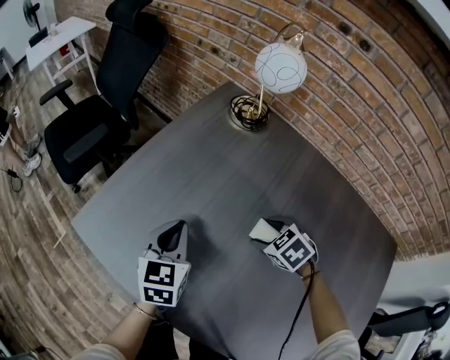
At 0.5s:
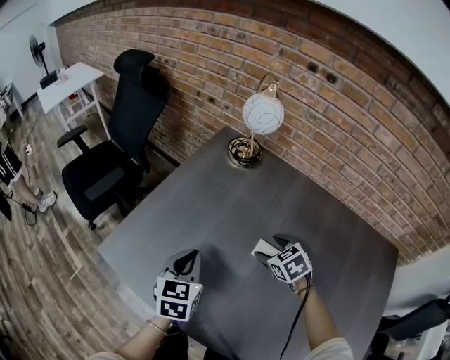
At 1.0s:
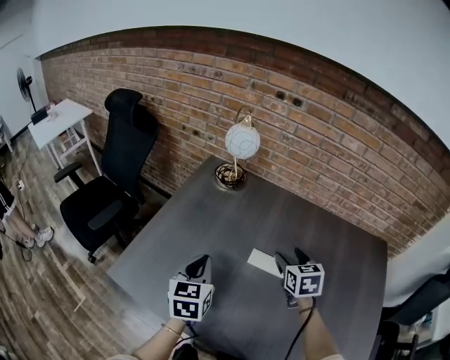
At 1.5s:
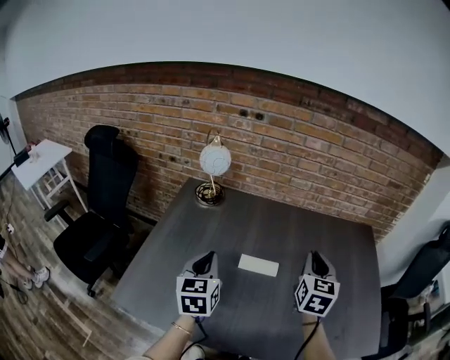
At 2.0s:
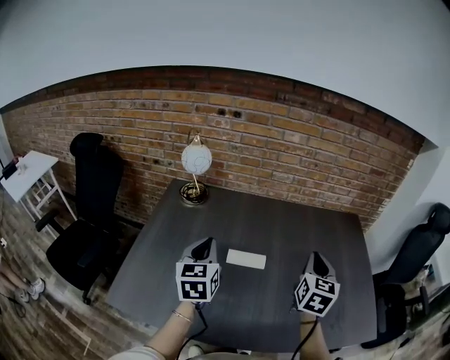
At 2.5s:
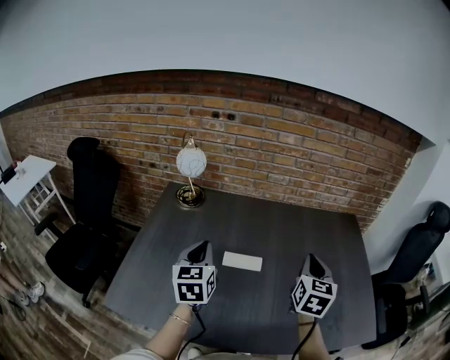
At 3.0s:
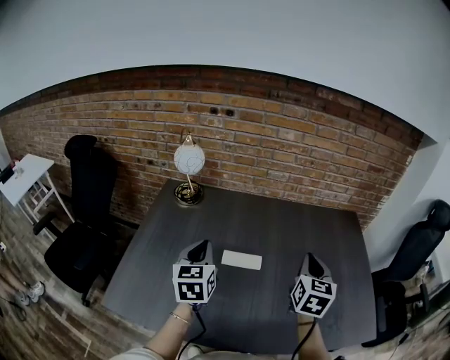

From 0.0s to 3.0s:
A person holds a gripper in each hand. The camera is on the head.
From 0.0s to 1.5s: The left gripper moves upward, some 15 cm, and changes its angle by about 20 degrees. Meanwhile the right gripper is displaced upward by some 30 cm, points its fingers approximately 50 degrees further upward, and closes its fingers.
From 1.5s to 3.0s: The right gripper moves to the right, about 5 cm. Meanwhile the left gripper moves about 5 cm.

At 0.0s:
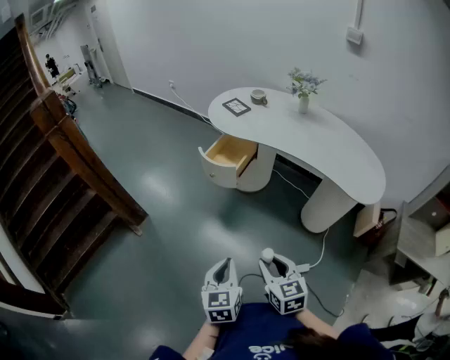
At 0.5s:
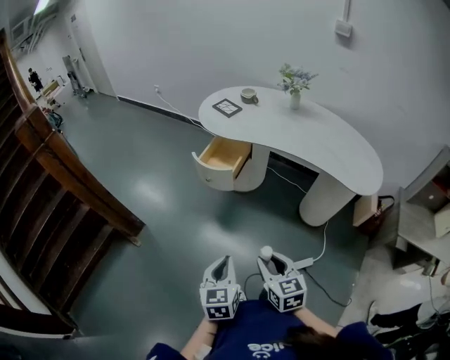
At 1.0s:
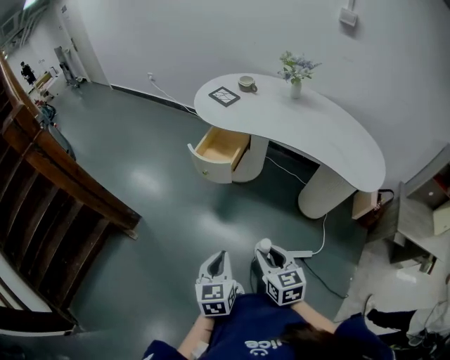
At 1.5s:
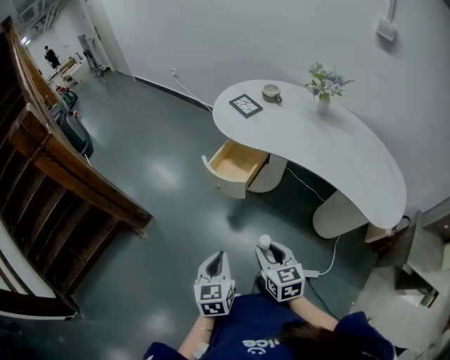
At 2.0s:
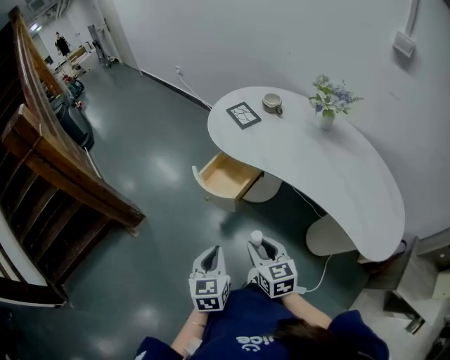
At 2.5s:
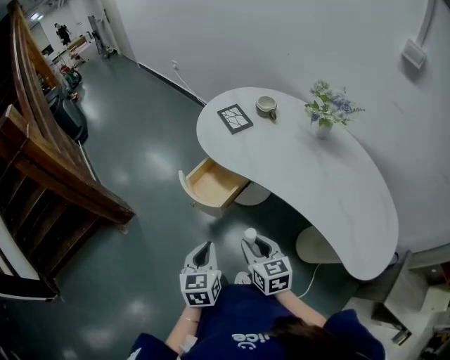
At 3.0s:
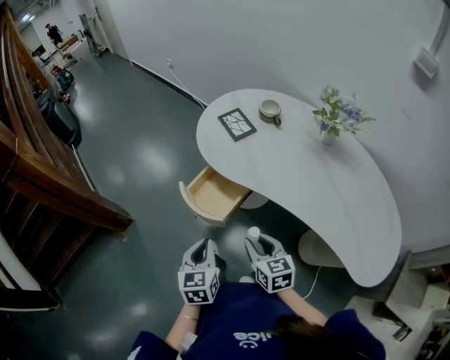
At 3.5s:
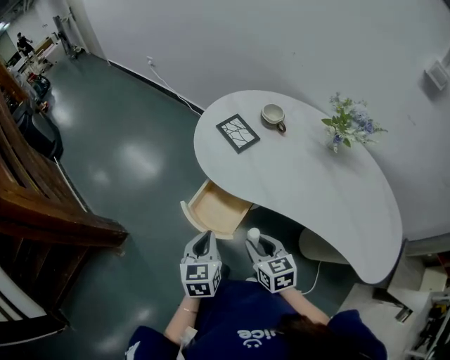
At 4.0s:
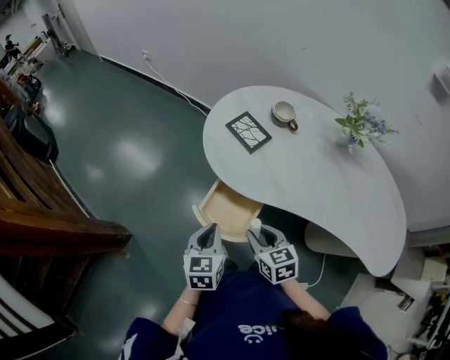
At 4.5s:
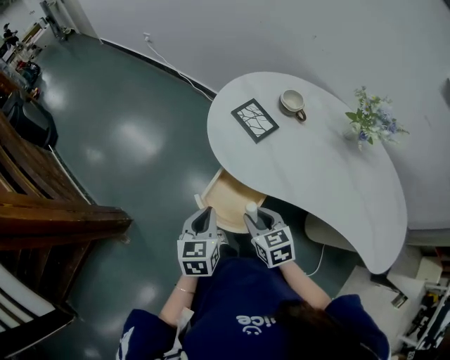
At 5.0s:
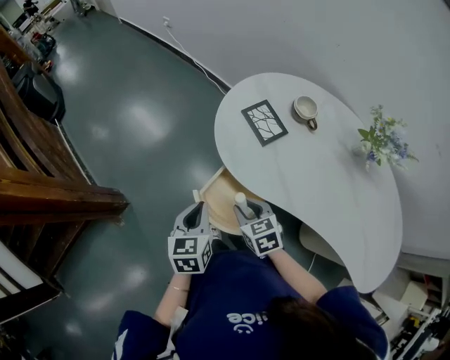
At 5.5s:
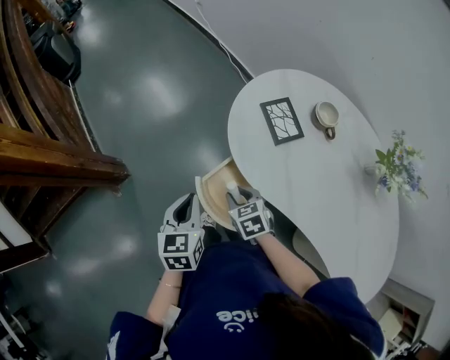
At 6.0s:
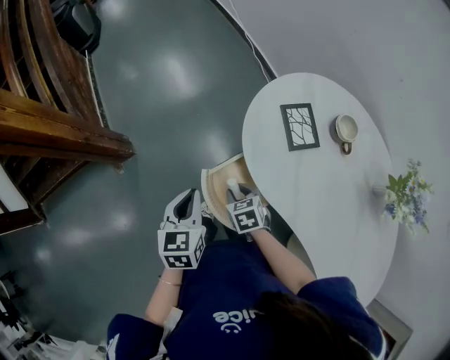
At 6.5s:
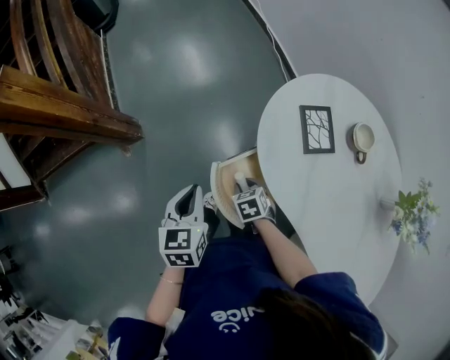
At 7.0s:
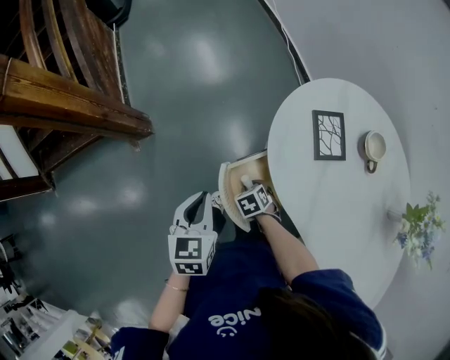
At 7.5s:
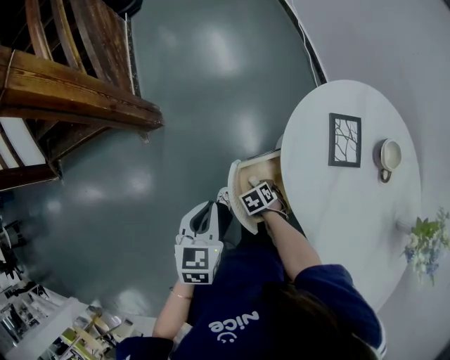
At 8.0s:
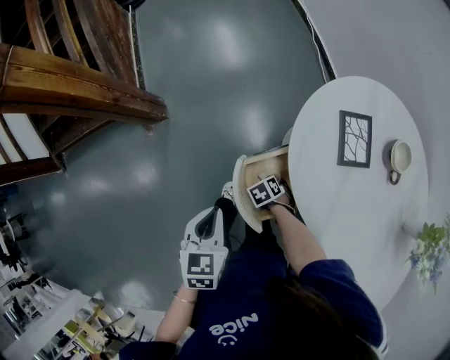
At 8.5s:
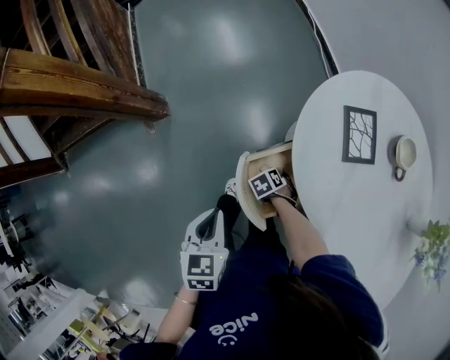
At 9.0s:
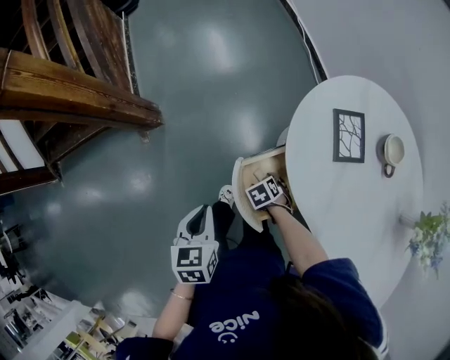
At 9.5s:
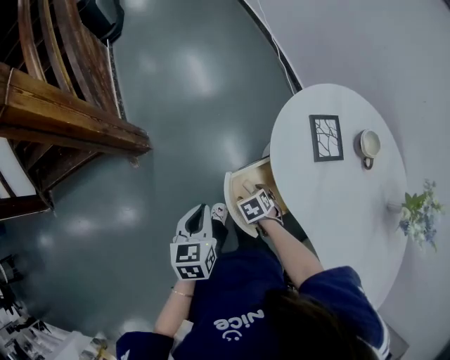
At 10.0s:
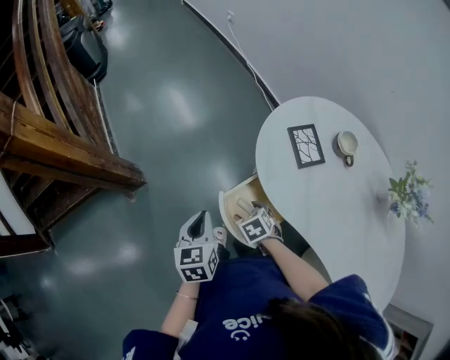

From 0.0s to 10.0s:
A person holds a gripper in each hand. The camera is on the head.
From 0.0s to 2.0s: Both grippers travel together forward, about 30 cm.
From 2.0s to 4.0s: Both grippers travel together forward, approximately 30 cm.
From 4.0s to 6.0s: The left gripper ends up some 10 cm from where it was, and swivels roughly 30 degrees; the right gripper travels downward by roughly 10 cm, and rotates roughly 40 degrees.
From 6.0s to 8.0s: The right gripper heads downward, covering some 15 cm, and changes its angle by some 30 degrees. Meanwhile the left gripper shifts by roughly 5 cm.
From 8.0s to 10.0s: The left gripper changes place by approximately 5 cm. The right gripper shifts roughly 15 cm upward, swivels about 20 degrees, and opens its fingers.

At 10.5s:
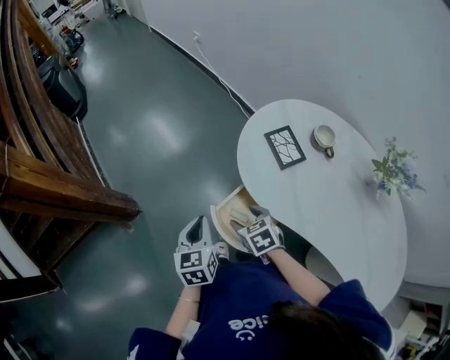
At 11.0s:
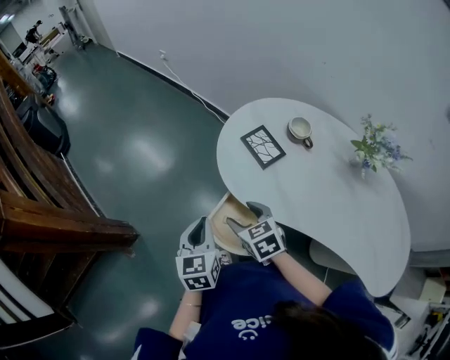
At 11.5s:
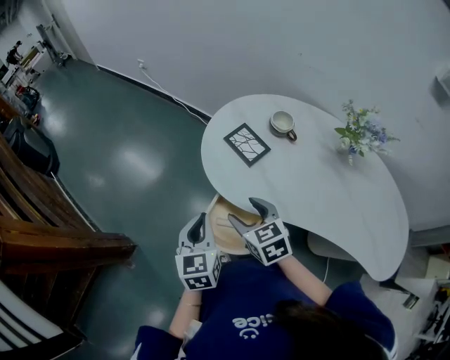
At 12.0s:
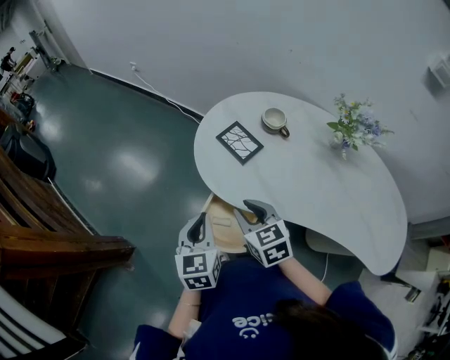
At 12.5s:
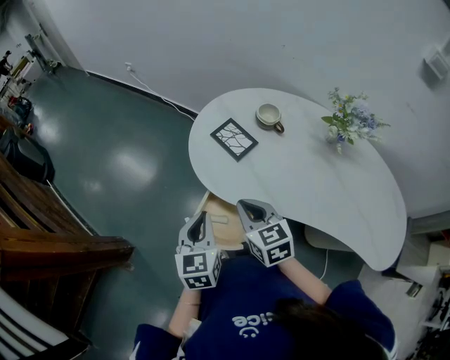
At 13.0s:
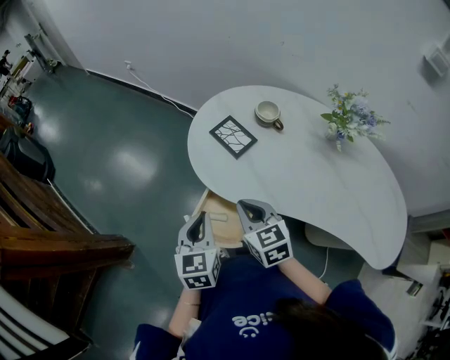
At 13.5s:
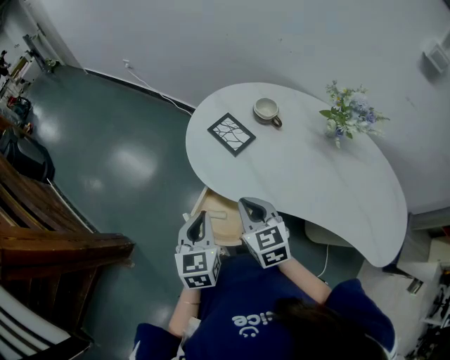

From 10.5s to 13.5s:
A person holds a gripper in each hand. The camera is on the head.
From 10.5s to 12.0s: The right gripper goes about 15 cm upward and to the right, changes its angle by some 30 degrees, and closes up, while the left gripper moves to the right and upward, about 10 cm, and turns by approximately 20 degrees.
From 12.0s to 13.5s: The right gripper closes its fingers.

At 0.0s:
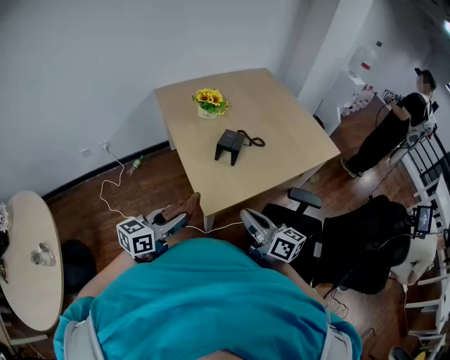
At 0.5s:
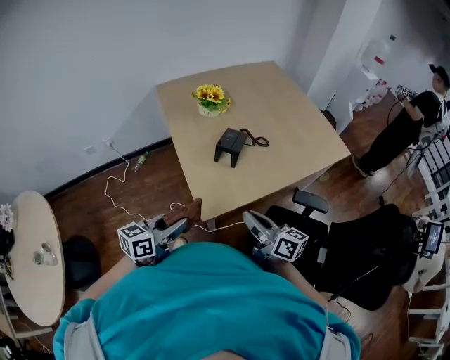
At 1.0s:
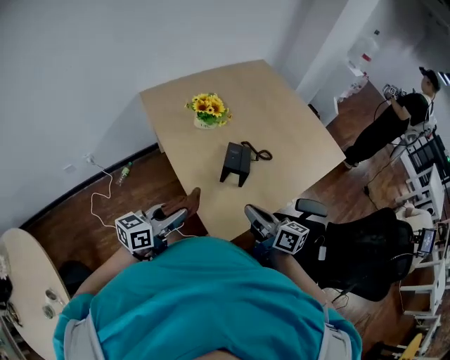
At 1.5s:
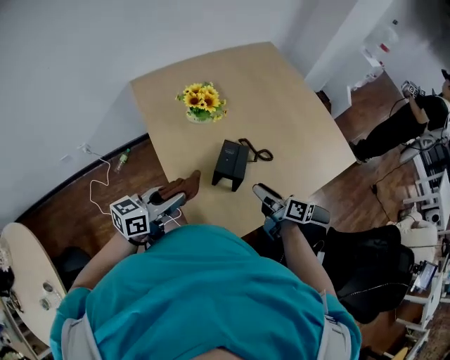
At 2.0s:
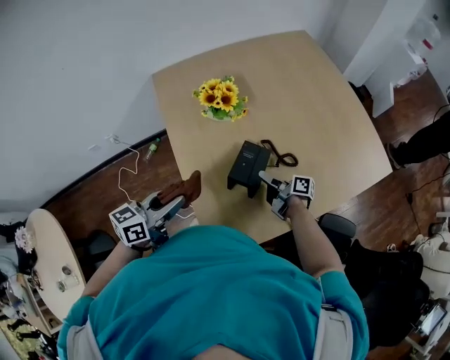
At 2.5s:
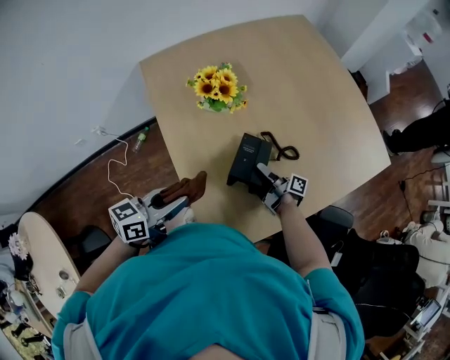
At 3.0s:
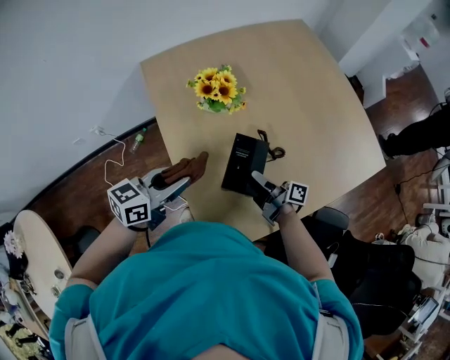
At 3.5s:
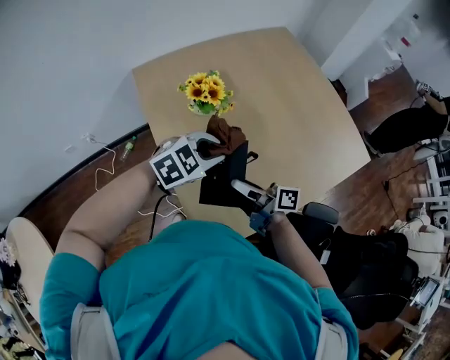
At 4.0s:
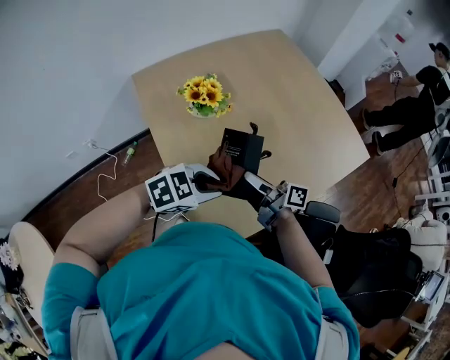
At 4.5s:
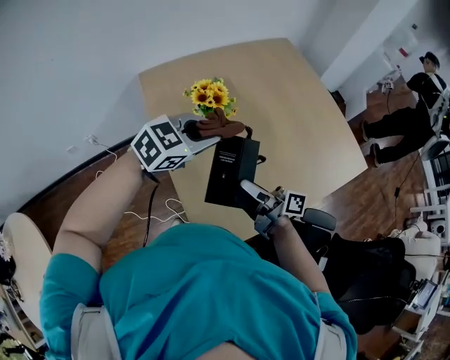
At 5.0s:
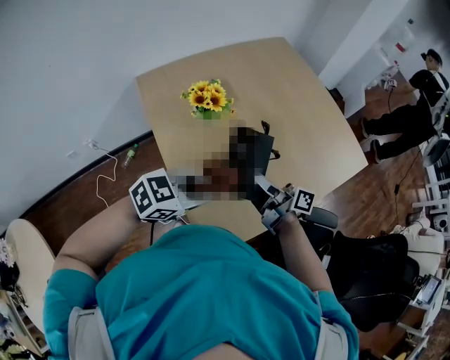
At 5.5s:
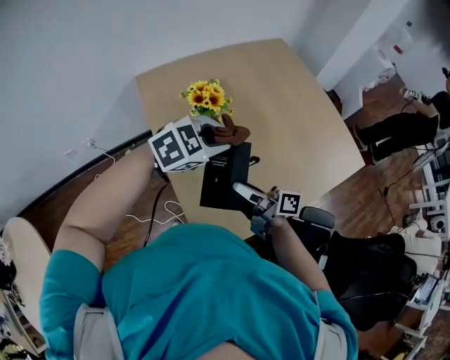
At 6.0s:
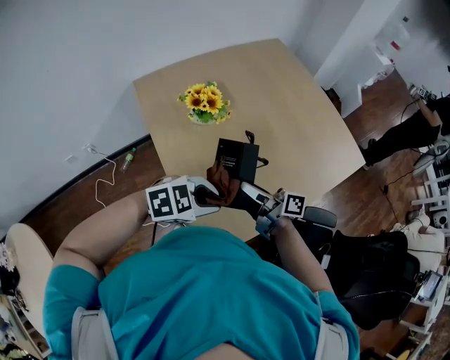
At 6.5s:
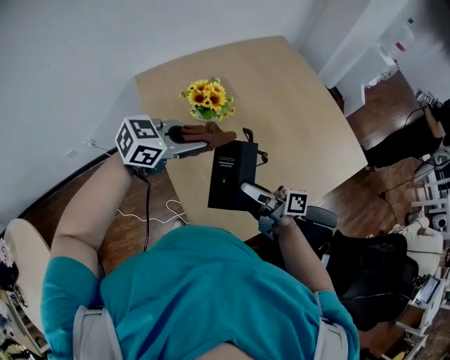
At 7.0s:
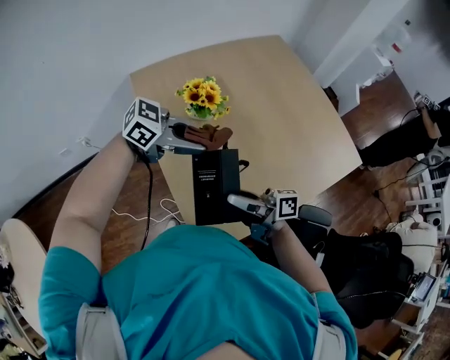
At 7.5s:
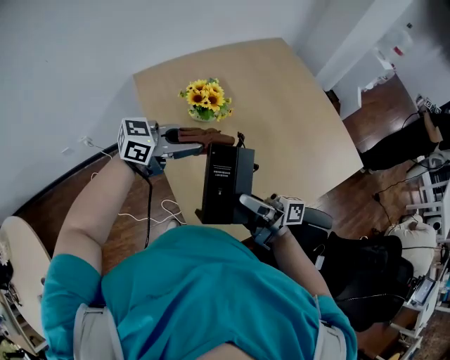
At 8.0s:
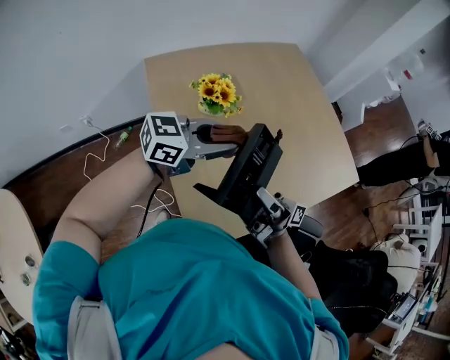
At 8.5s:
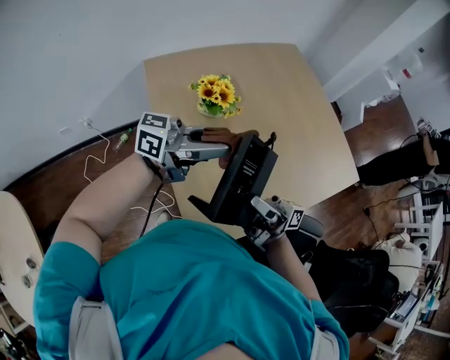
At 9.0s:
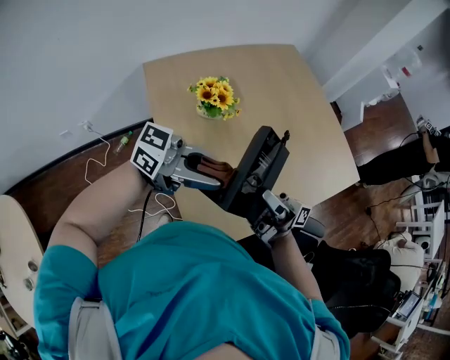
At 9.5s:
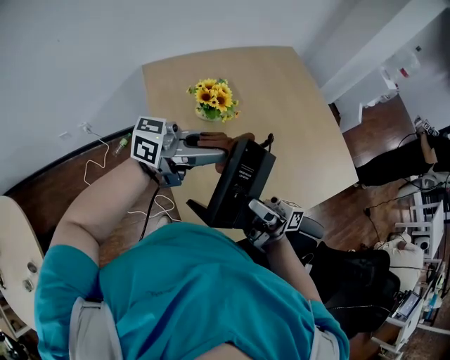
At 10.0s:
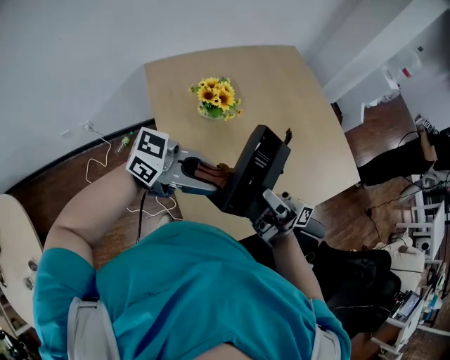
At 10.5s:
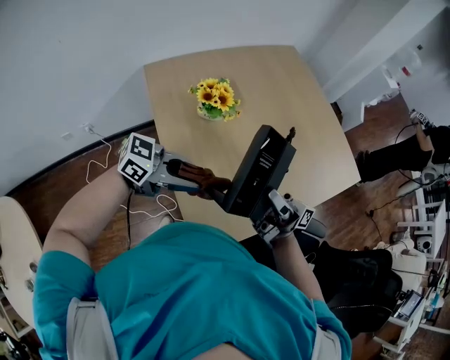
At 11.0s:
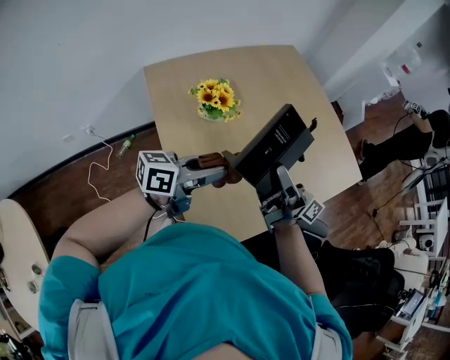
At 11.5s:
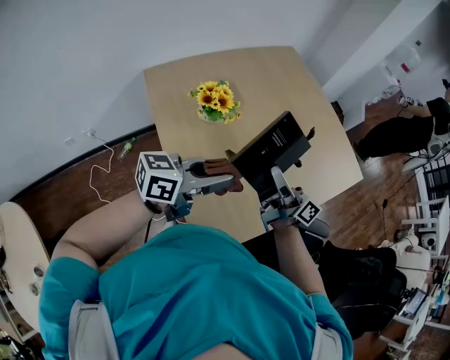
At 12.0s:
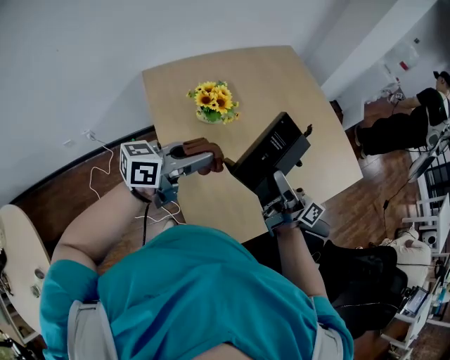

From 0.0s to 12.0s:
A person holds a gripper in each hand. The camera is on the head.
From 0.0s to 2.0s: The left gripper moves forward, approximately 30 cm; the right gripper moves forward and downward, approximately 50 cm, rolls clockwise, seen from behind, by about 40 degrees, and opens up.
From 2.0s to 4.0s: The left gripper shifts by about 15 cm, and turns by roughly 60 degrees. Meanwhile the right gripper travels upward by roughly 15 cm, turns by some 20 degrees, and closes.
From 4.0s to 6.0s: The left gripper swings up and down, approximately 10 cm each way, with 3 reversals.
From 6.0s to 8.0s: The right gripper travels upward by about 10 cm, and angles its fingers upward, by about 30 degrees; the left gripper ends up approximately 15 cm from where it was, and points its fingers roughly 40 degrees further upward.
From 8.0s to 10.0s: The left gripper changes place by approximately 10 cm, and swivels approximately 20 degrees.
From 10.0s to 12.0s: The right gripper shifts by some 5 cm, and changes its angle by some 20 degrees; the left gripper moves about 10 cm, and changes its angle by some 40 degrees.
